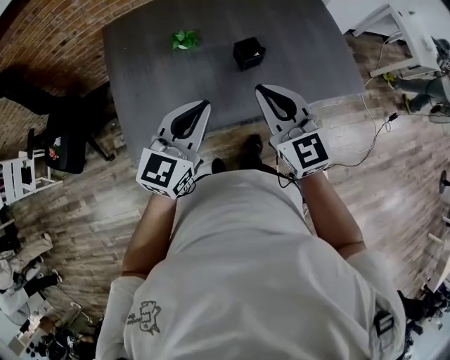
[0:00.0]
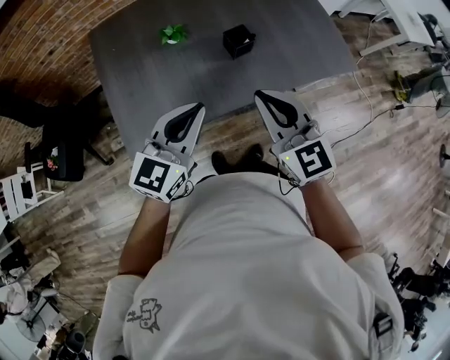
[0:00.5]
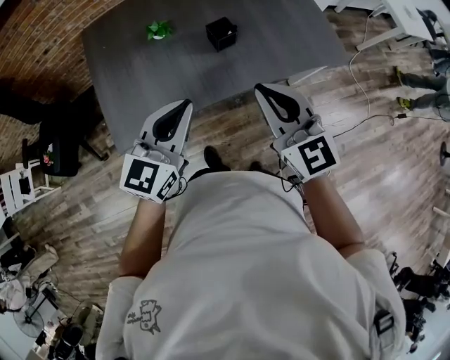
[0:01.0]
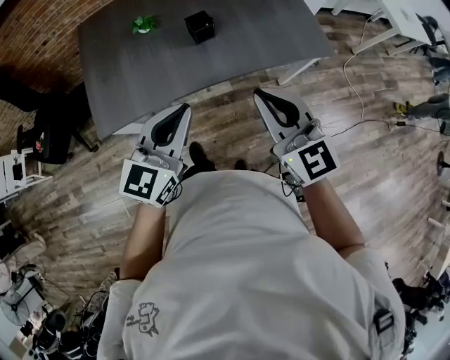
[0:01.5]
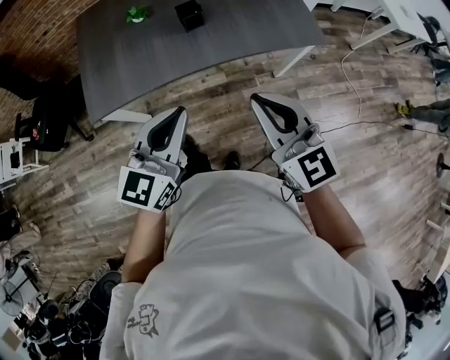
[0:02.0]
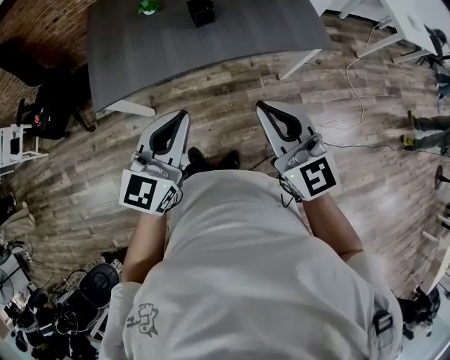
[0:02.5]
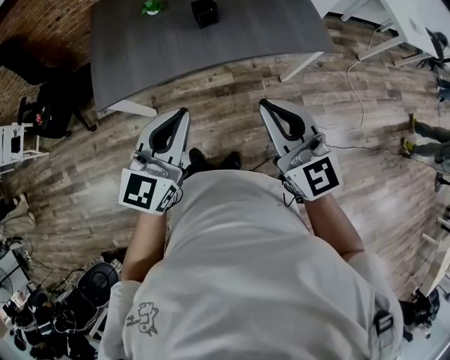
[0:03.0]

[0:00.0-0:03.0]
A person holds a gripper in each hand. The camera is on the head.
0:00.0 to 0:01.5: The left gripper travels backward and to the right by roughly 20 cm, while the right gripper heads to the right and backward, covering approximately 20 cm.
0:01.5 to 0:03.0: The two grippers go approximately 10 cm backward.

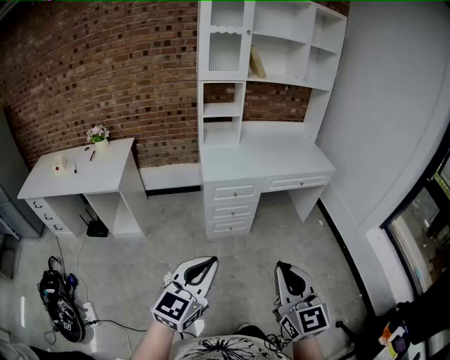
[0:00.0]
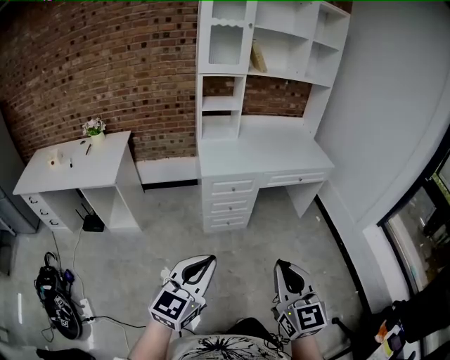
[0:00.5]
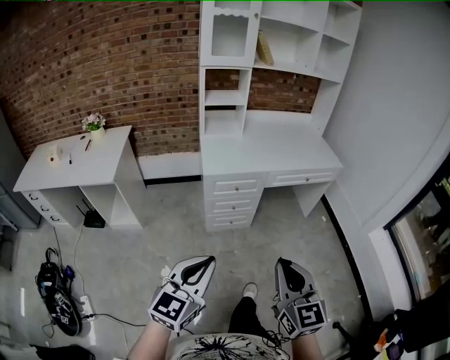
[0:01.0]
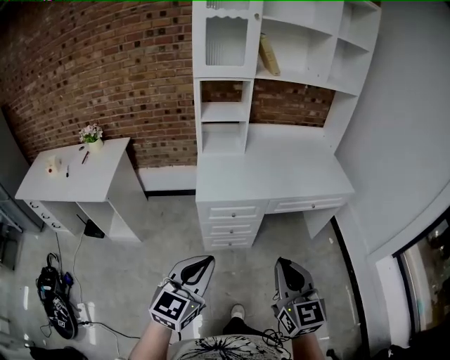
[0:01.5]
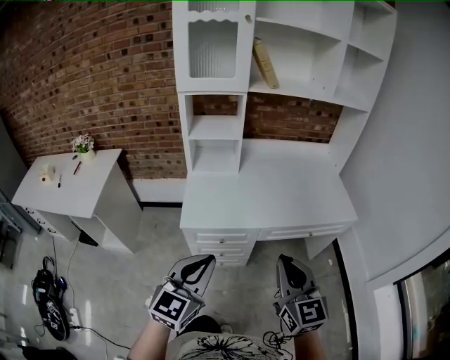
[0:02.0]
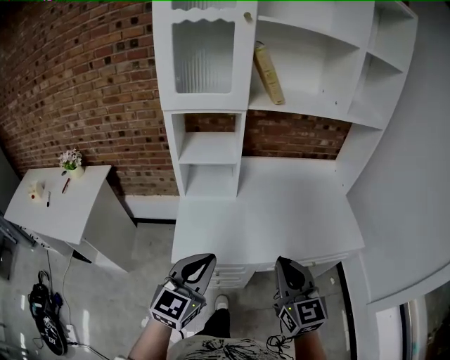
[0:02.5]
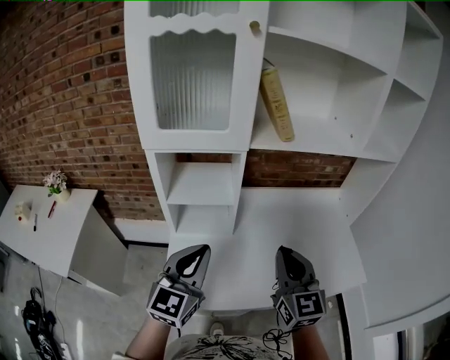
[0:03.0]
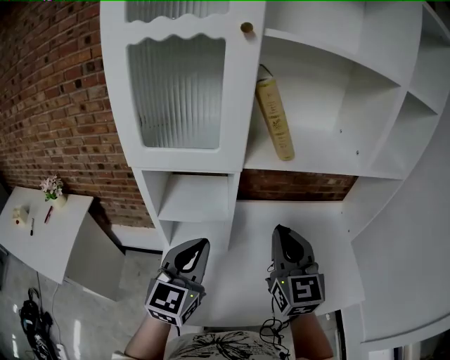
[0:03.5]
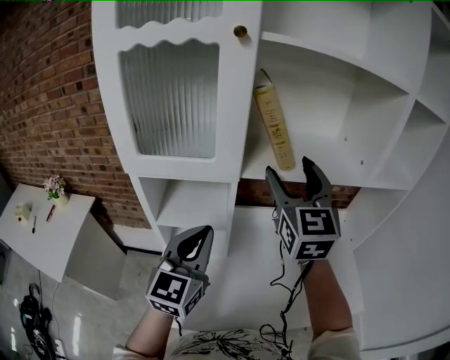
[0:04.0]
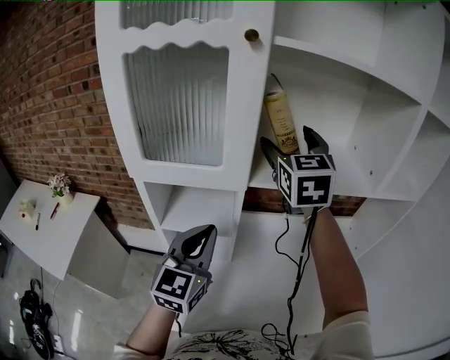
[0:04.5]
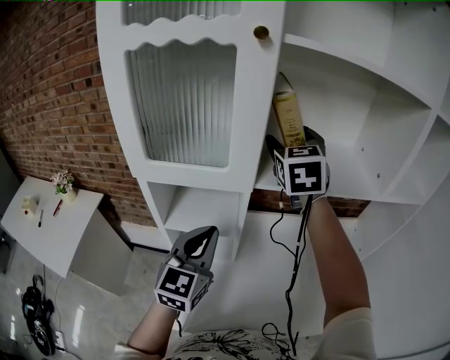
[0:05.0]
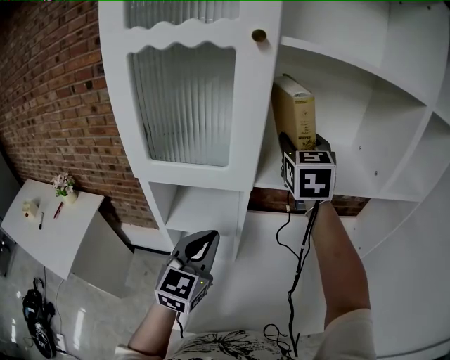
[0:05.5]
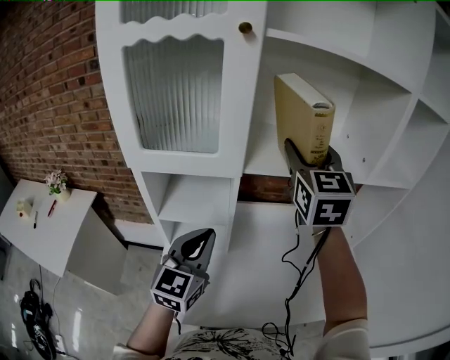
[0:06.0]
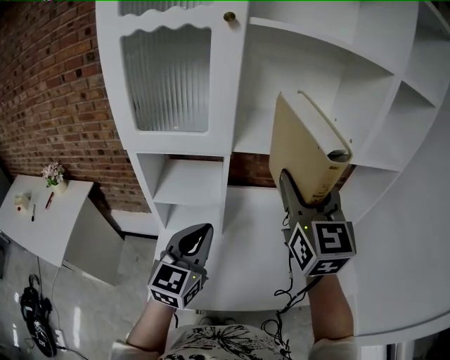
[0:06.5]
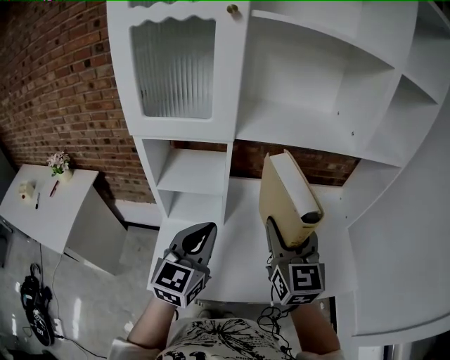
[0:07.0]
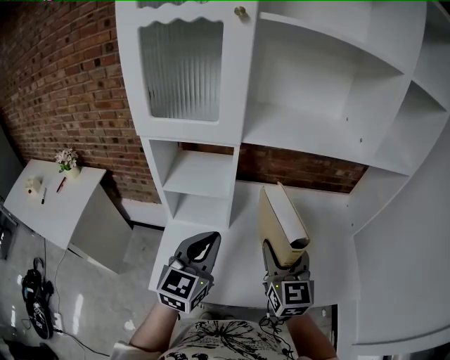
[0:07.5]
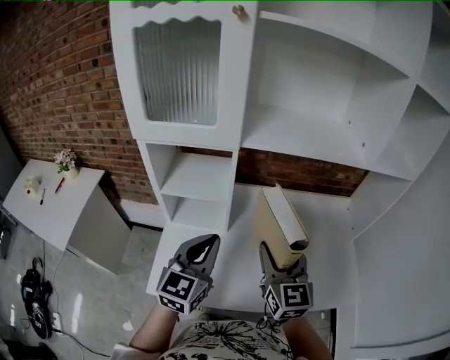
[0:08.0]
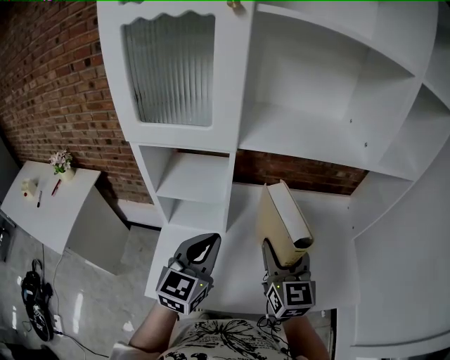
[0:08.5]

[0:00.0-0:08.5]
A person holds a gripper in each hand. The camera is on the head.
0:00.0 to 0:02.0: The pair of grippers is taken forward, some 50 cm.
0:02.0 to 0:04.0: The pair of grippers is taken forward, some 60 cm. The right gripper opens its fingers.
0:04.0 to 0:06.5: The right gripper moves backward, roughly 10 cm. Meanwhile the left gripper shifts by about 5 cm.
0:06.5 to 0:08.5: The left gripper ends up roughly 5 cm from where it was. The right gripper is displaced downward by approximately 20 cm.

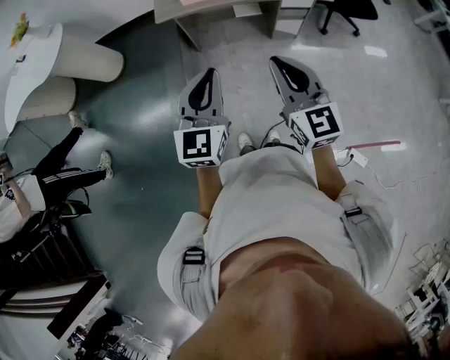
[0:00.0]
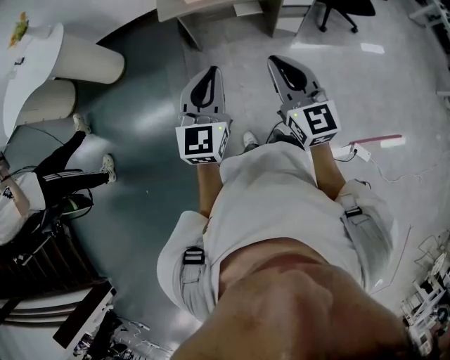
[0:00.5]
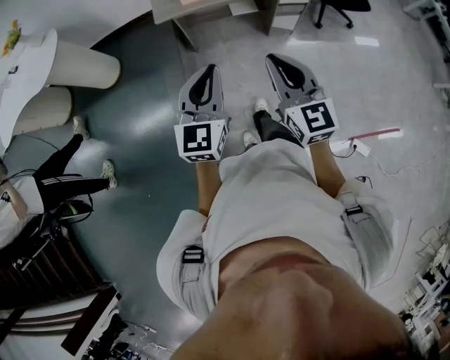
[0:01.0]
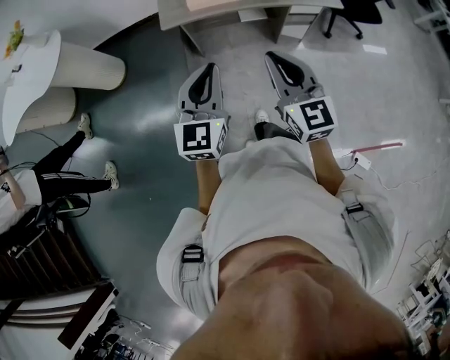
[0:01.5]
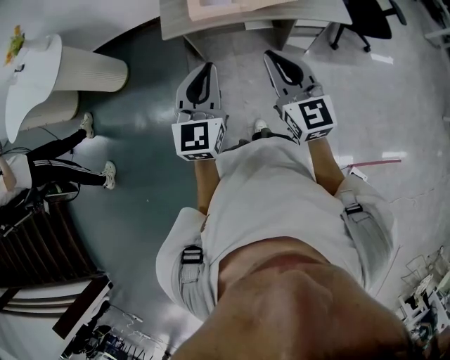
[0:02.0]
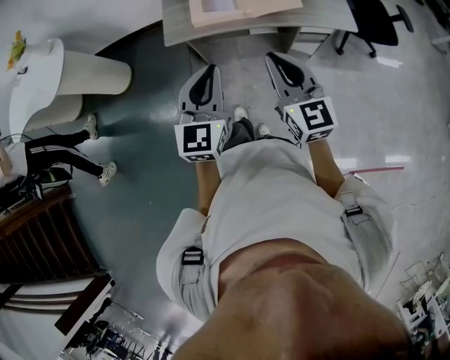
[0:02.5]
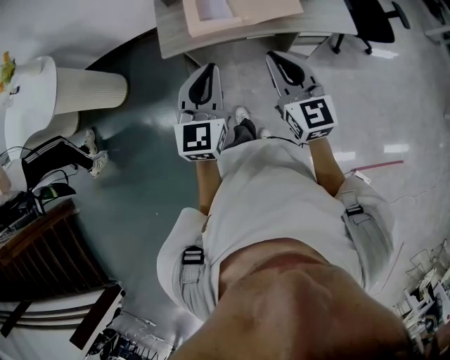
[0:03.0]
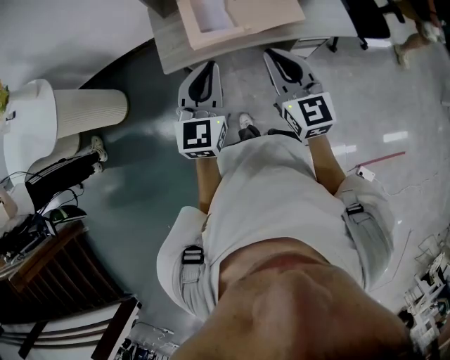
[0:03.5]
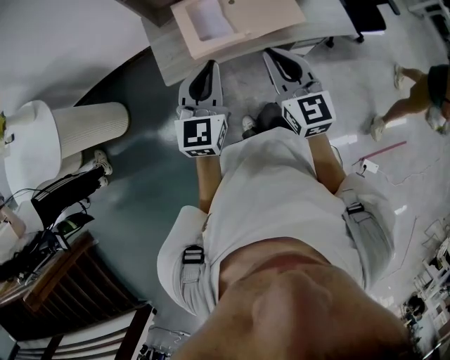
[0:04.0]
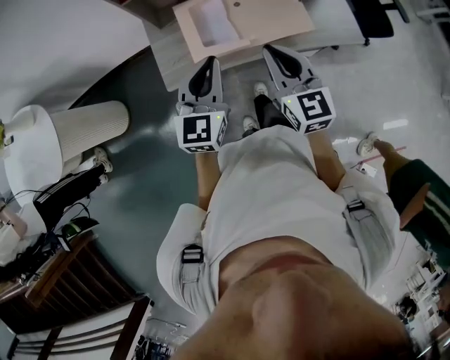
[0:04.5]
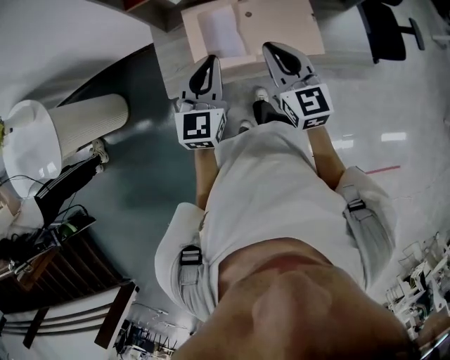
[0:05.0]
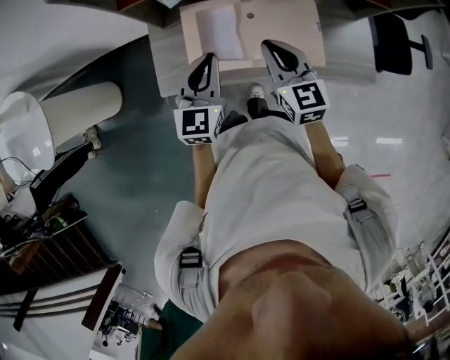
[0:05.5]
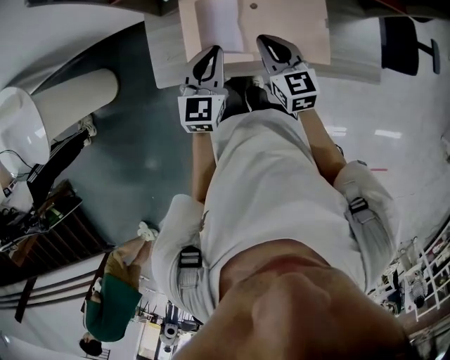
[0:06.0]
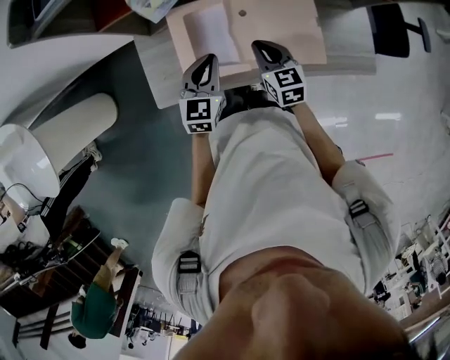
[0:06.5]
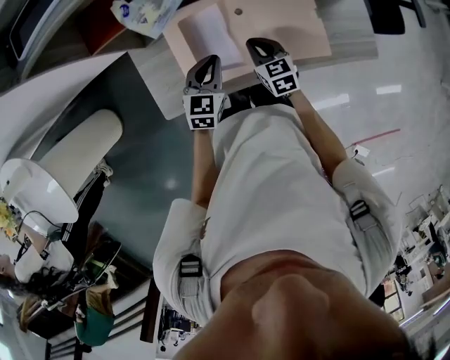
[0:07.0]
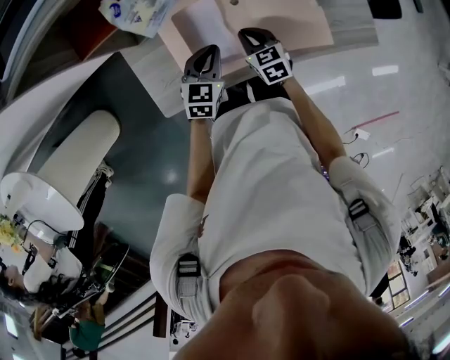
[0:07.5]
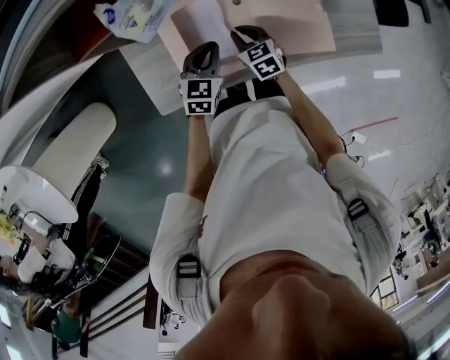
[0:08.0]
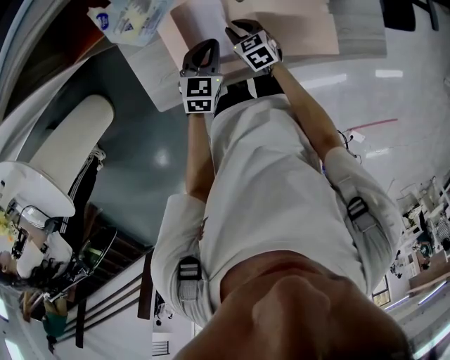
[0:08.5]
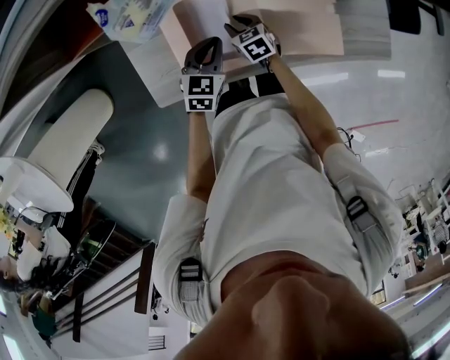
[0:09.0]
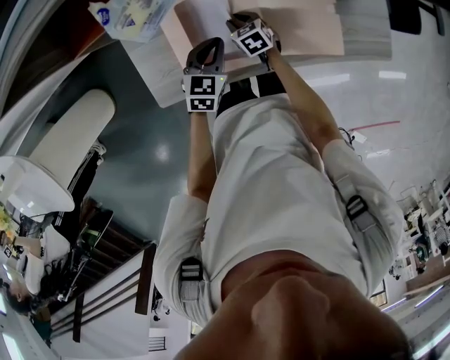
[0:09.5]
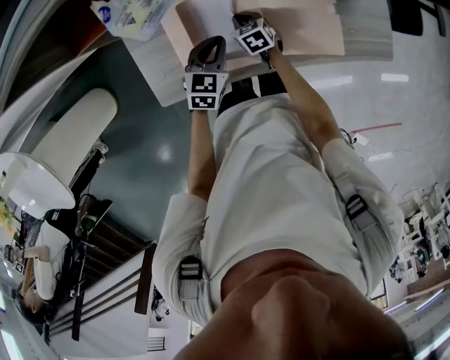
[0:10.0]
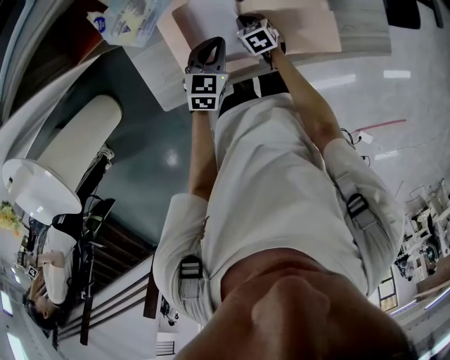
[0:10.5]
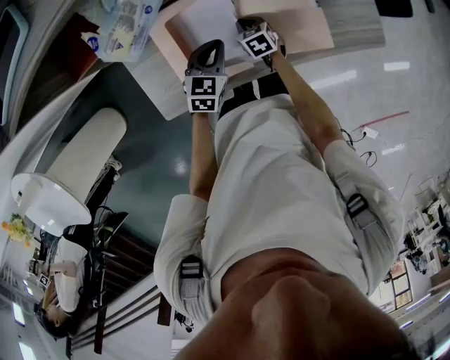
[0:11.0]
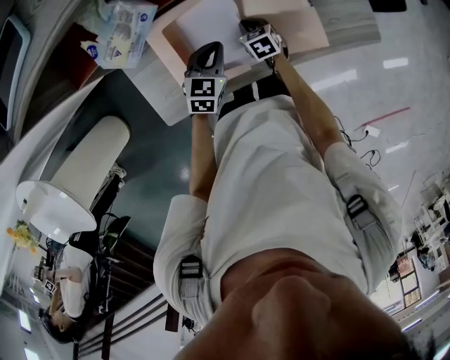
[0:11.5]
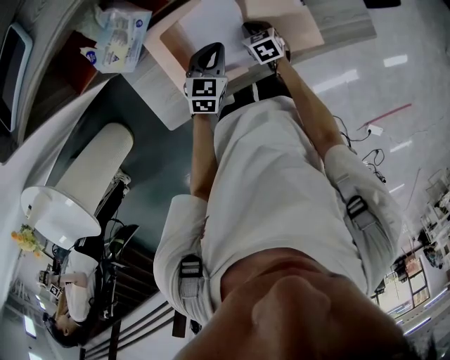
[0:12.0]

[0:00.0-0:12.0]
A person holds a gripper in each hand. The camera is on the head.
0:00.0 to 0:02.0: The grippers both shift forward by approximately 20 cm.
0:02.0 to 0:04.0: Both grippers travel together forward, about 20 cm.
0:04.0 to 0:06.0: Both grippers travel together forward and downward, roughly 30 cm. The right gripper rotates roughly 20 degrees.
0:06.0 to 0:08.0: The two grippers go roughly 20 cm downward. The right gripper turns by some 20 degrees. The left gripper rotates approximately 20 degrees.
0:08.0 to 0:10.0: The right gripper shifts roughly 10 cm downward.
0:10.0 to 0:12.0: The right gripper shifts approximately 10 cm to the right, while the left gripper travels to the right by some 5 cm.

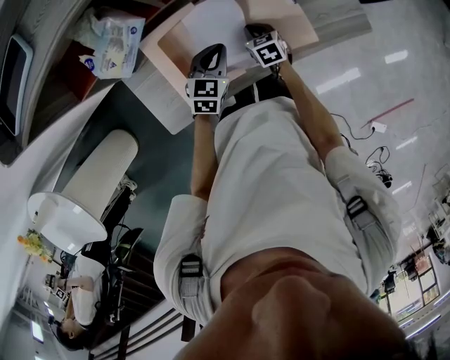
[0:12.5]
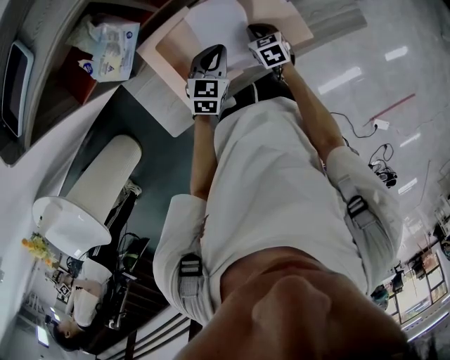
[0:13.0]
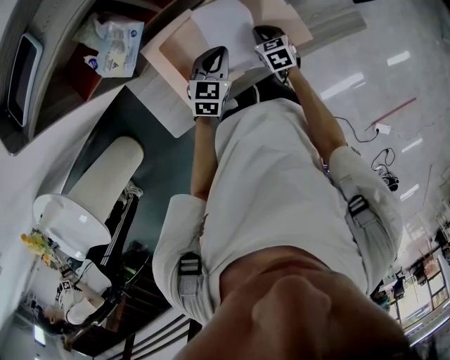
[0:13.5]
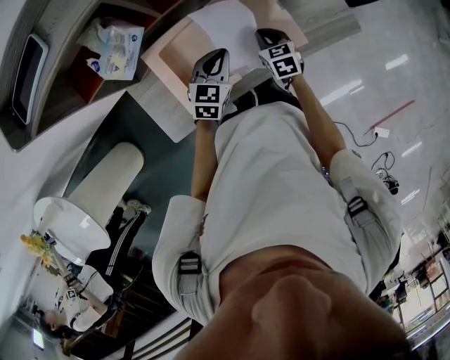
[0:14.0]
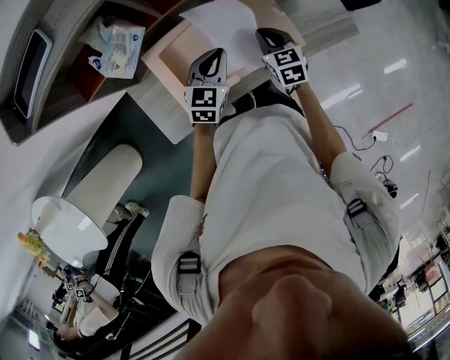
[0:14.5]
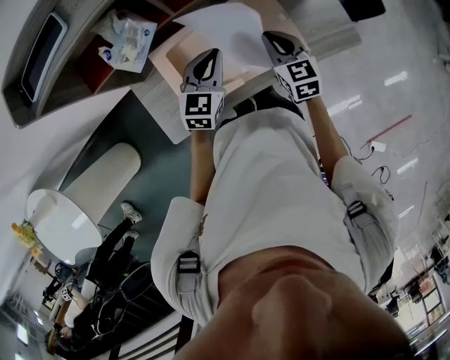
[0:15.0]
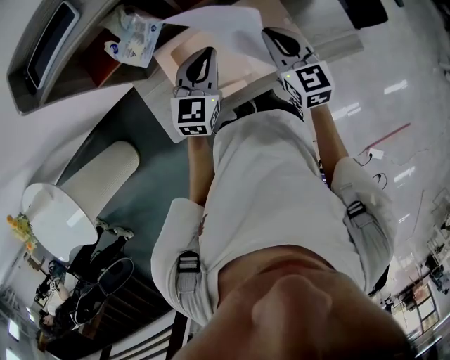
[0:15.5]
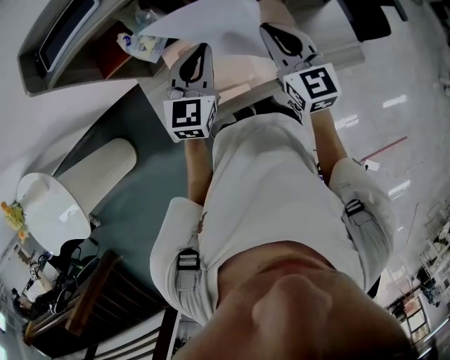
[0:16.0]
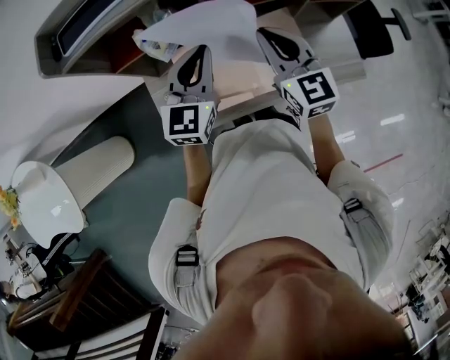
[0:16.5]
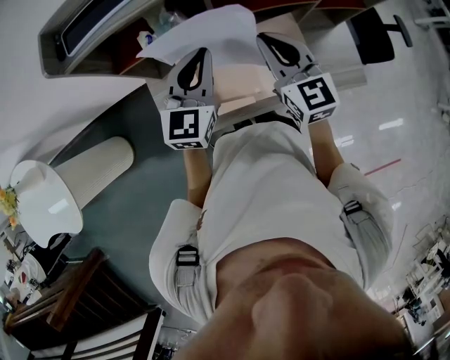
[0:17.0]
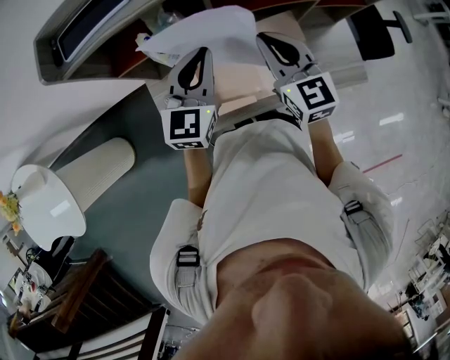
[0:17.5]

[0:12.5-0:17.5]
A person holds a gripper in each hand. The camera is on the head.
0:12.5 to 0:15.0: The left gripper is displaced upward by some 15 cm. The right gripper is displaced upward by roughly 20 cm, and changes its angle by approximately 30 degrees.
0:15.0 to 0:17.5: Both grippers move upward and to the left, some 20 cm. The right gripper swivels about 20 degrees.
